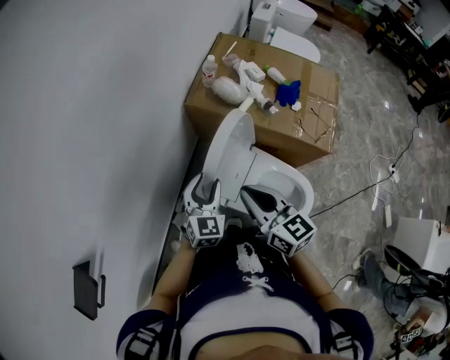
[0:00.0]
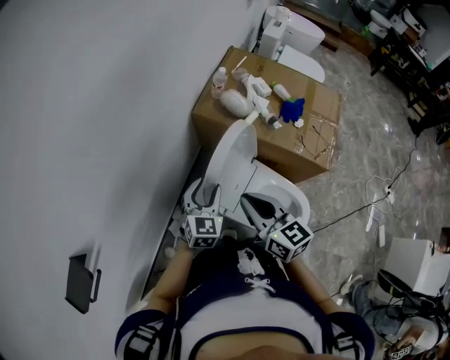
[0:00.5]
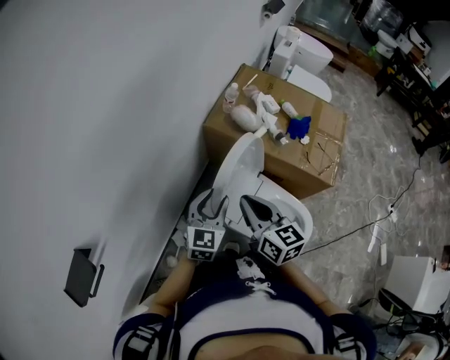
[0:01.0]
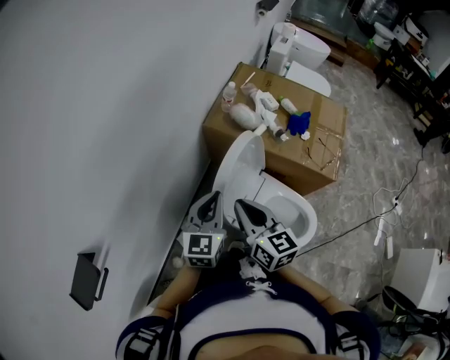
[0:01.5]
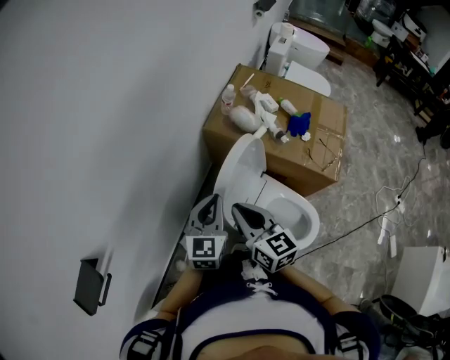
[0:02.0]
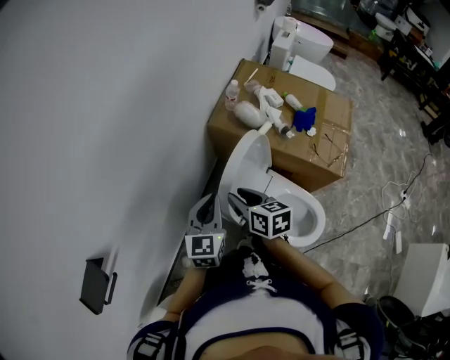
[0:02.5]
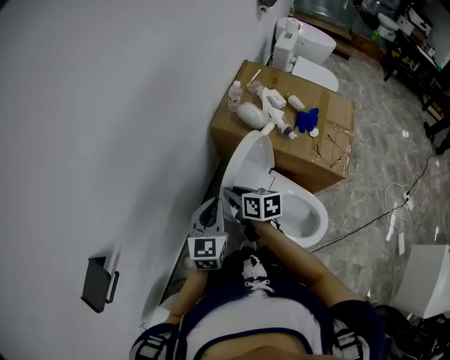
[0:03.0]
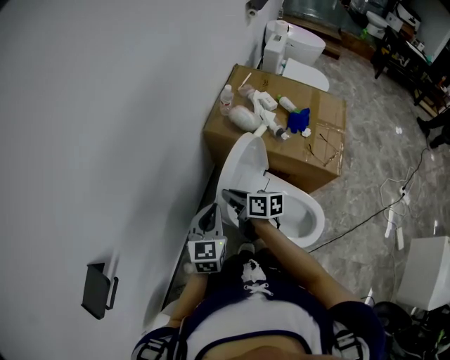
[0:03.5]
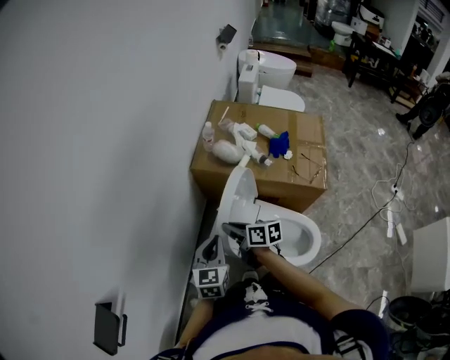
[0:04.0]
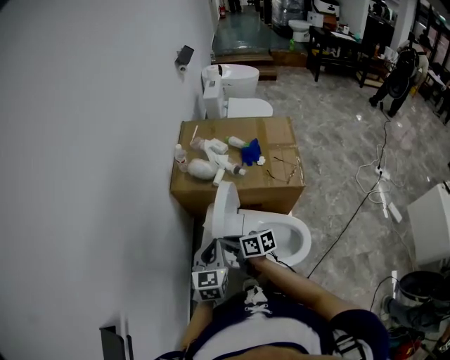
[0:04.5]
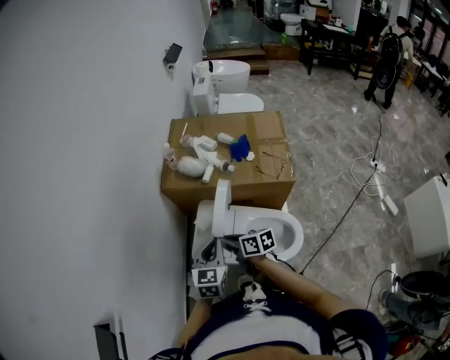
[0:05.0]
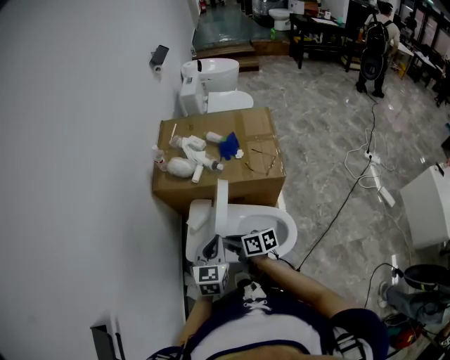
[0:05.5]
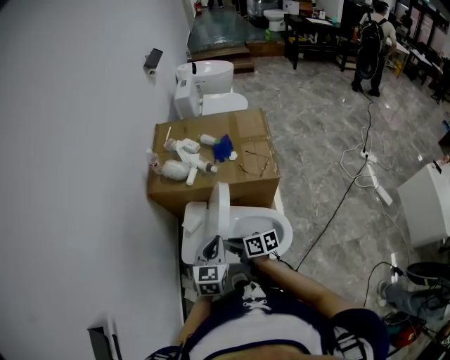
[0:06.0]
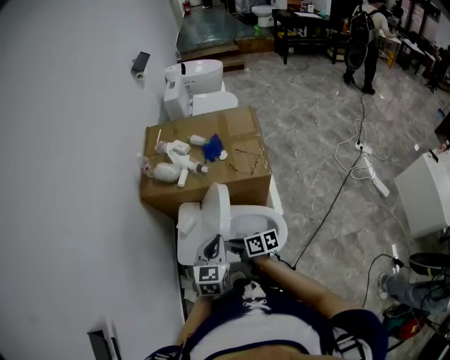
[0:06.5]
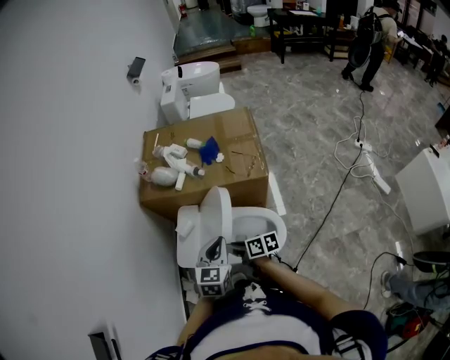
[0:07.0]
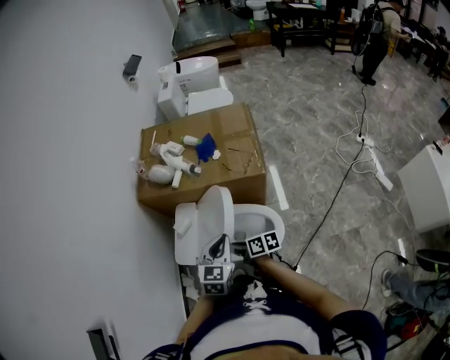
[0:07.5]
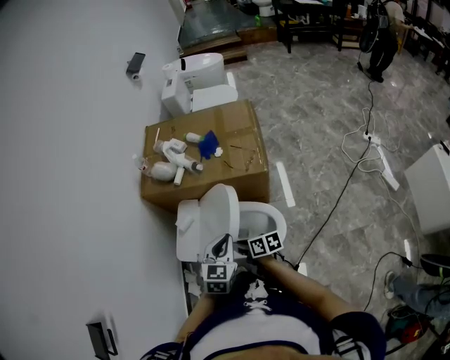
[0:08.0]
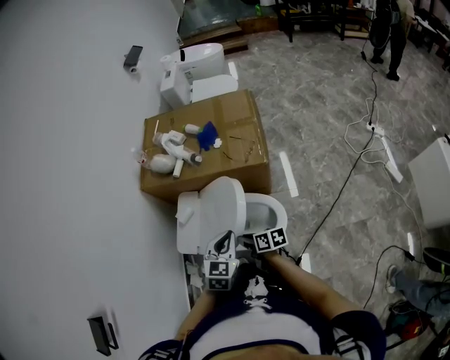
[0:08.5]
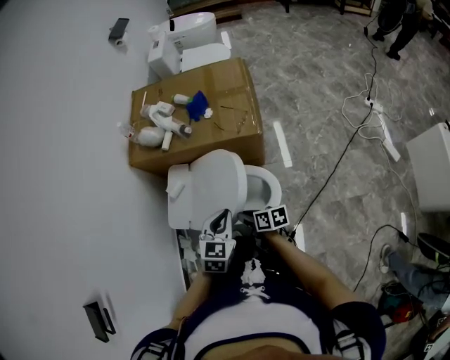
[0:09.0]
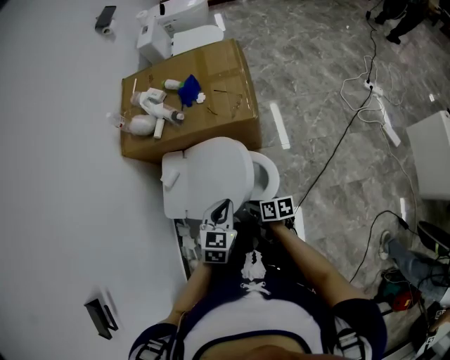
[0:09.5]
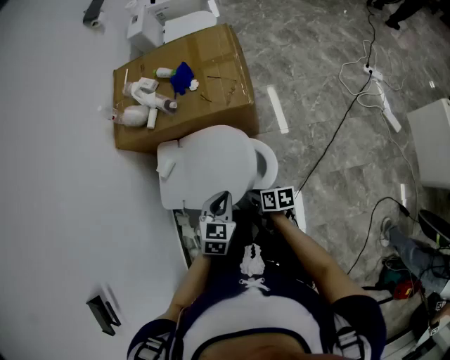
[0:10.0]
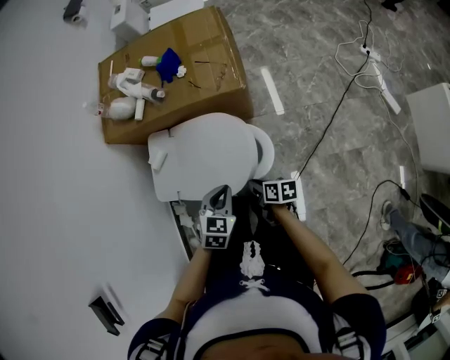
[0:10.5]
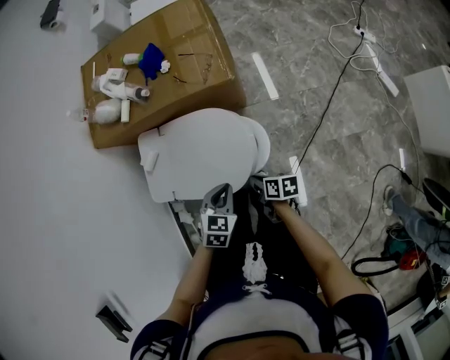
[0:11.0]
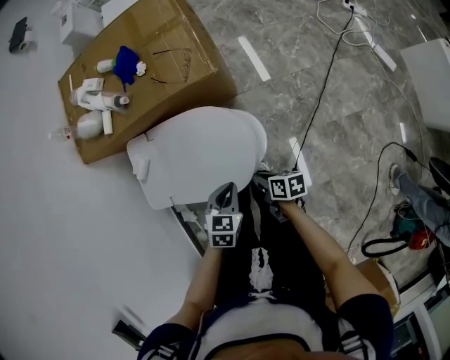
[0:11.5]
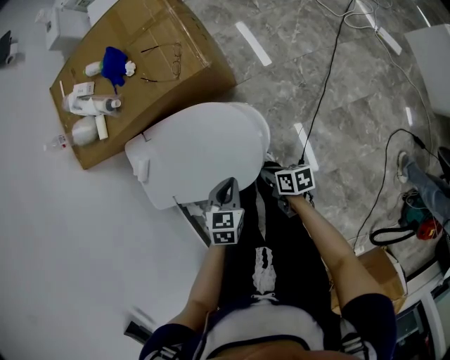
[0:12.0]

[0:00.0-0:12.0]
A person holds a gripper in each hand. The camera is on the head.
0:00.0 to 0:02.0: The right gripper shifts roughly 5 cm to the left. Meanwhile the left gripper moves upward, roughly 10 cm, and closes up.
0:02.0 to 0:04.0: The right gripper travels downward and forward by approximately 10 cm, and turns by approximately 30 degrees. The left gripper moves roughly 5 cm.
0:04.0 to 0:06.0: The left gripper goes approximately 20 cm to the right; the right gripper shifts approximately 20 cm to the right and backward.
0:06.0 to 0:08.0: The right gripper heads to the right, backward and downward, covering some 15 cm, while the left gripper travels to the right and backward by about 15 cm.
0:08.0 to 0:10.0: The left gripper goes roughly 10 cm downward, while the right gripper shifts about 15 cm downward, to the right and backward.
0:10.0 to 0:12.0: The right gripper shifts approximately 15 cm downward and to the right; the left gripper shifts approximately 15 cm downward.

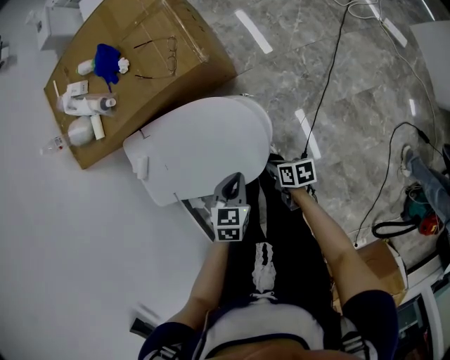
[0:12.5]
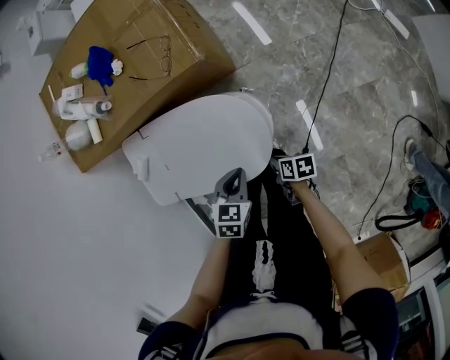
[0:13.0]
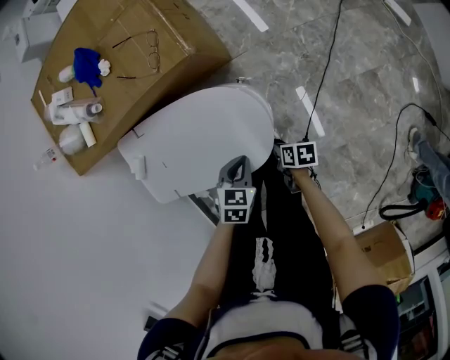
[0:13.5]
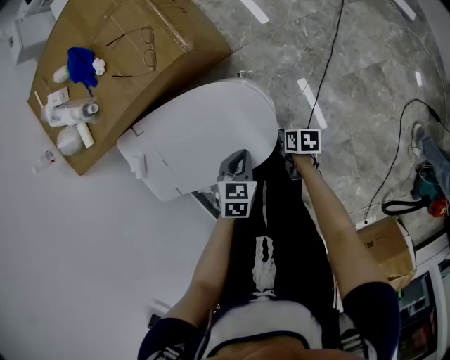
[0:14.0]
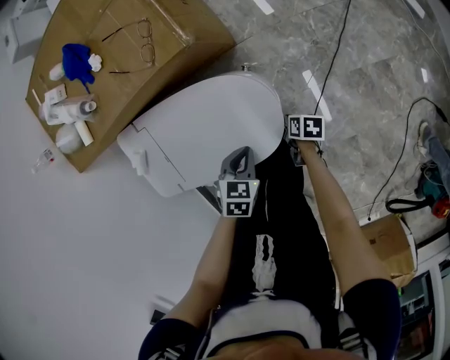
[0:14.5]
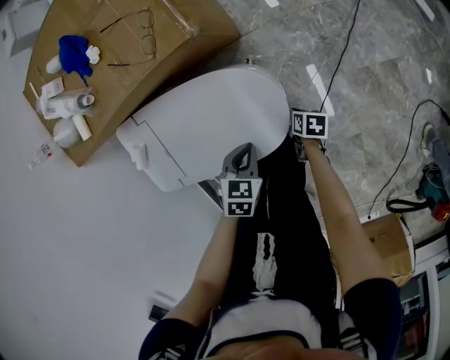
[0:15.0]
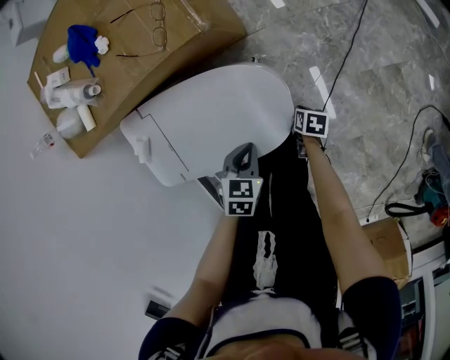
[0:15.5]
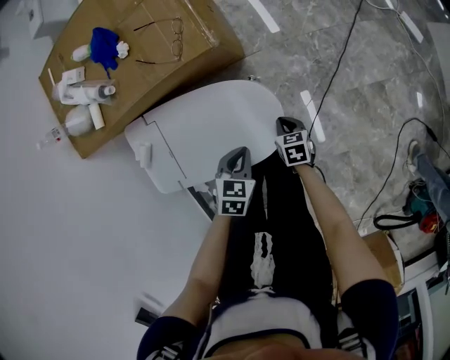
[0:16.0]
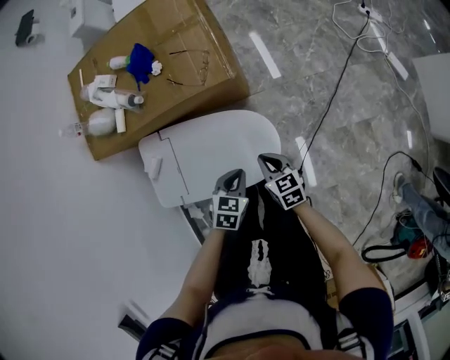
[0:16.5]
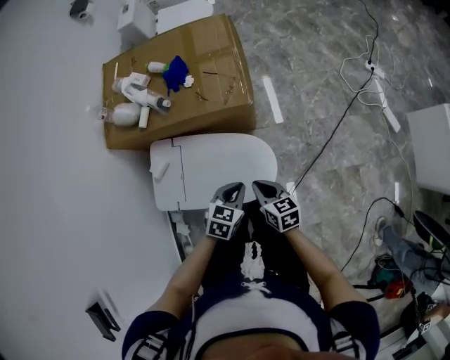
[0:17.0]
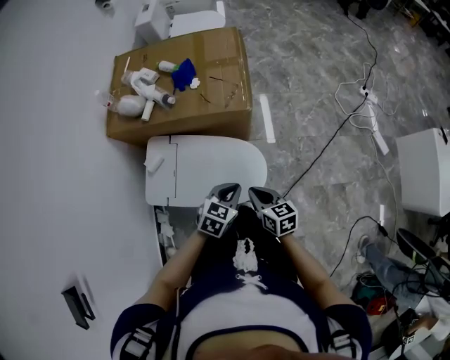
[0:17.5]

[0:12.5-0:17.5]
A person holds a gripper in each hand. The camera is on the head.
0:12.5 to 0:15.0: The right gripper goes some 20 cm downward and to the right, and swivels some 20 degrees. Meanwhile the left gripper is displaced downward by about 10 cm.
0:15.0 to 0:17.5: The left gripper travels upward by approximately 25 cm, and rotates about 20 degrees. Meanwhile the right gripper goes about 40 cm upward, and tips its fingers upward by some 30 degrees.

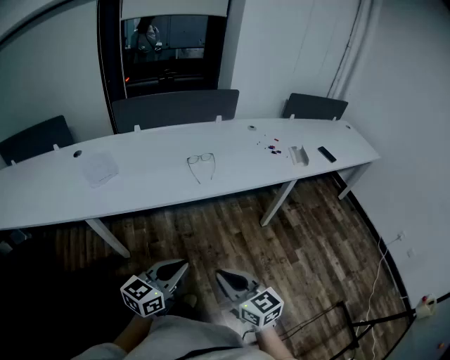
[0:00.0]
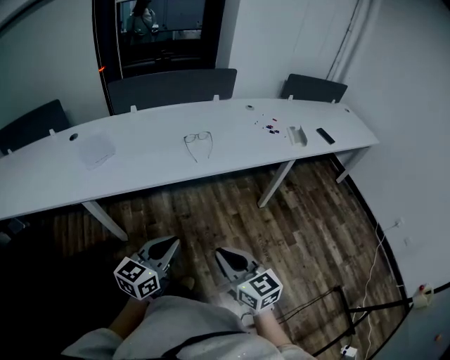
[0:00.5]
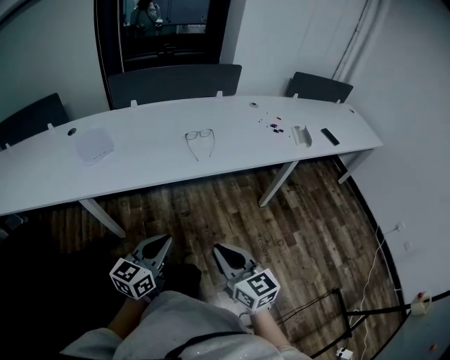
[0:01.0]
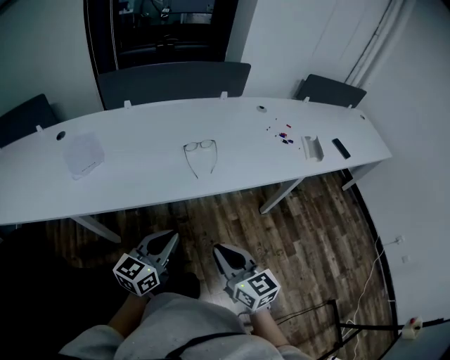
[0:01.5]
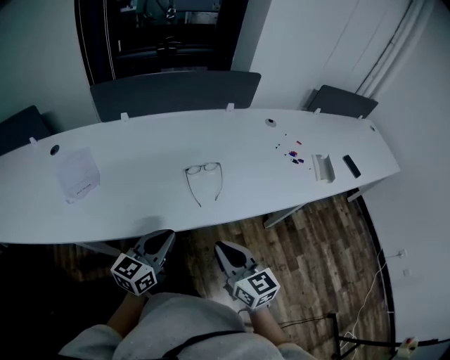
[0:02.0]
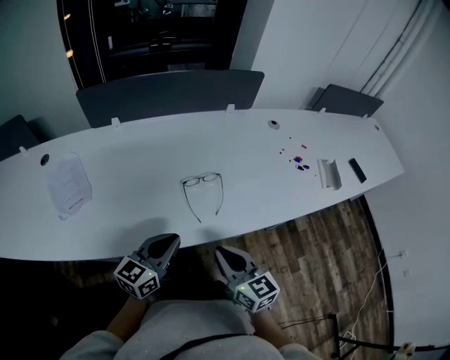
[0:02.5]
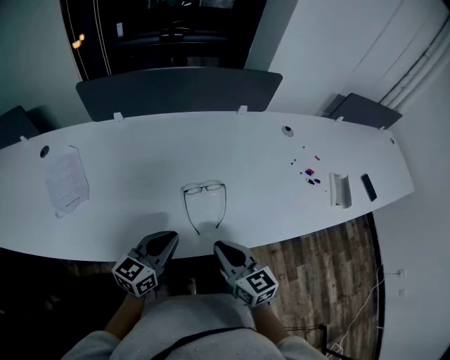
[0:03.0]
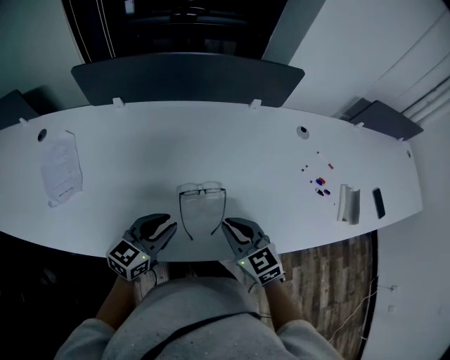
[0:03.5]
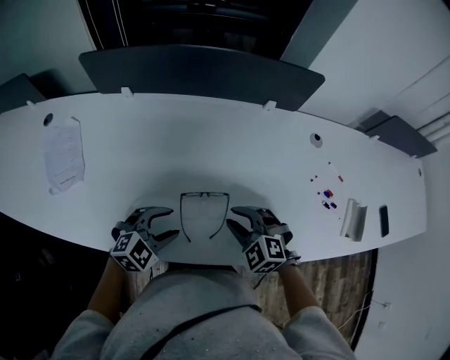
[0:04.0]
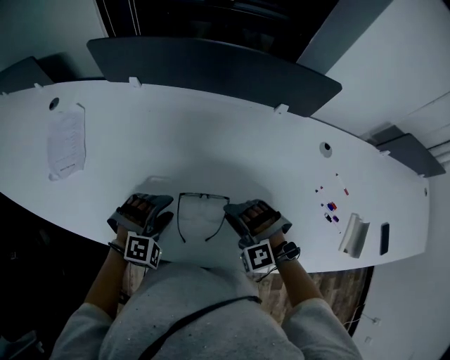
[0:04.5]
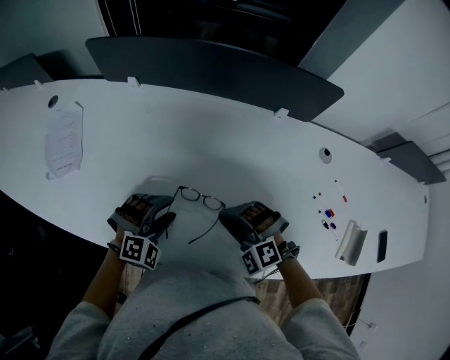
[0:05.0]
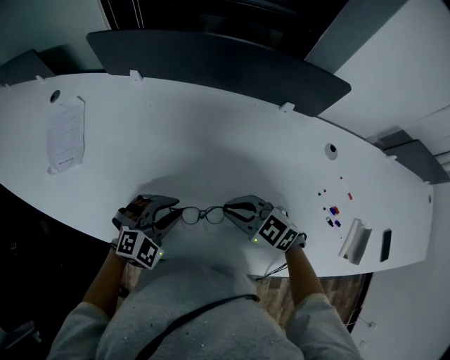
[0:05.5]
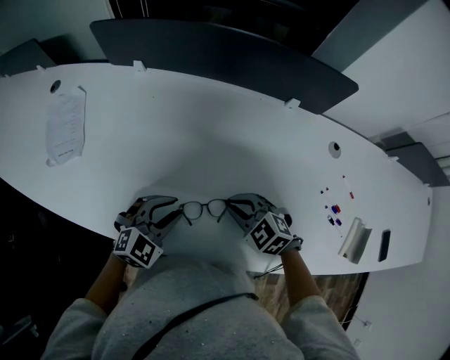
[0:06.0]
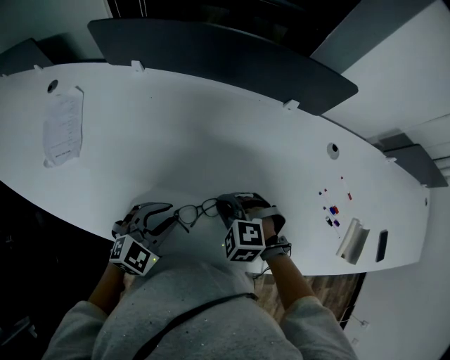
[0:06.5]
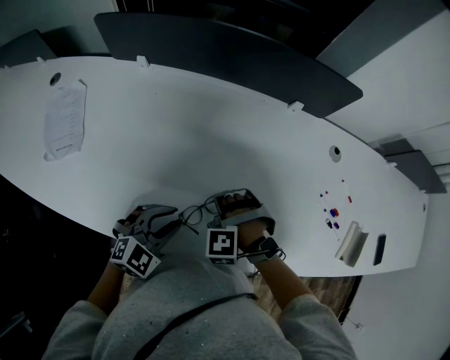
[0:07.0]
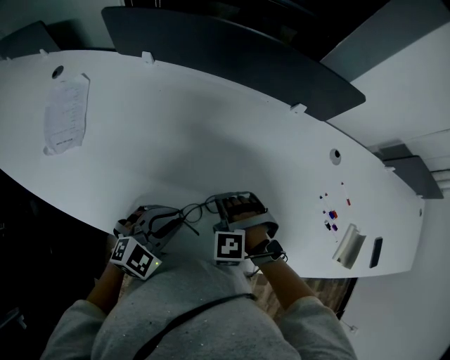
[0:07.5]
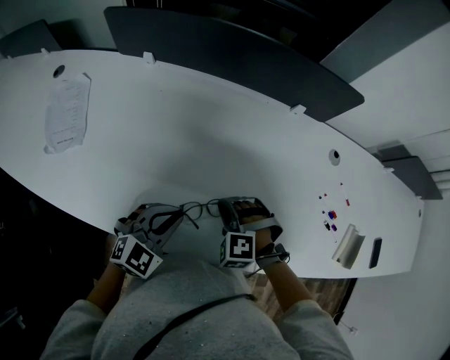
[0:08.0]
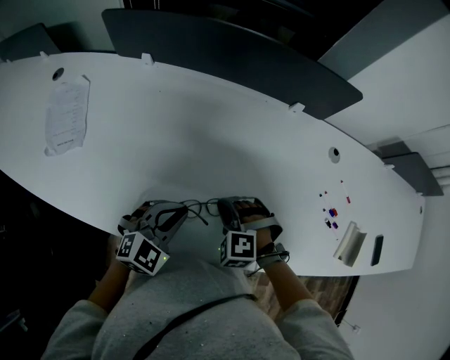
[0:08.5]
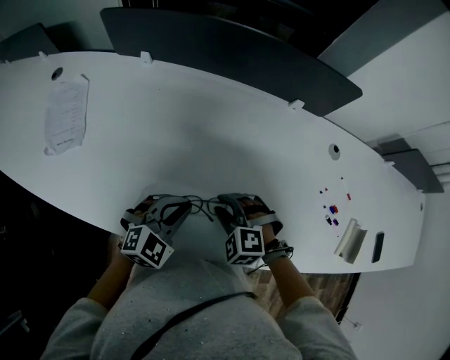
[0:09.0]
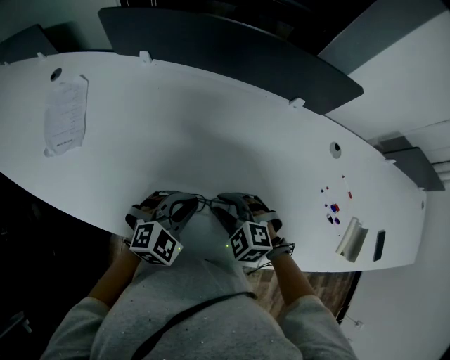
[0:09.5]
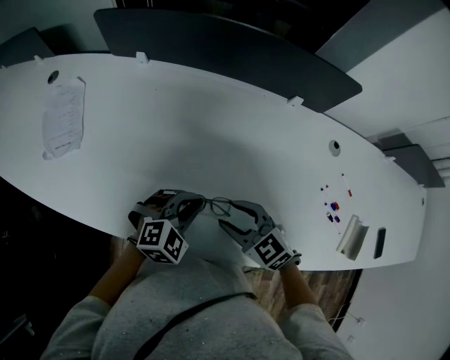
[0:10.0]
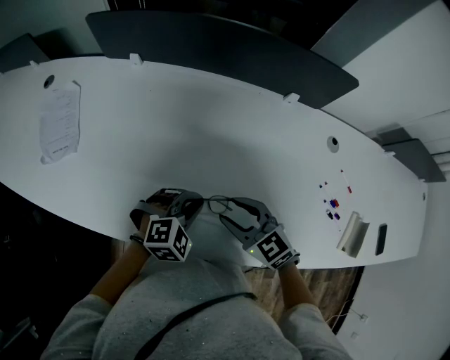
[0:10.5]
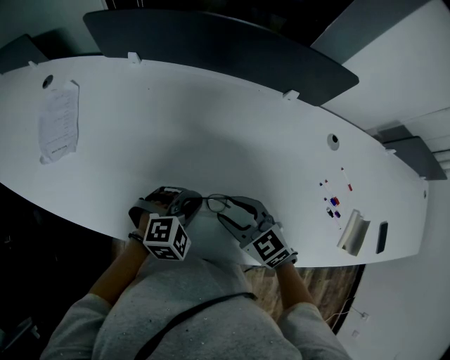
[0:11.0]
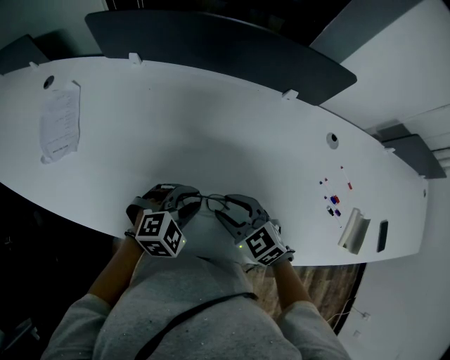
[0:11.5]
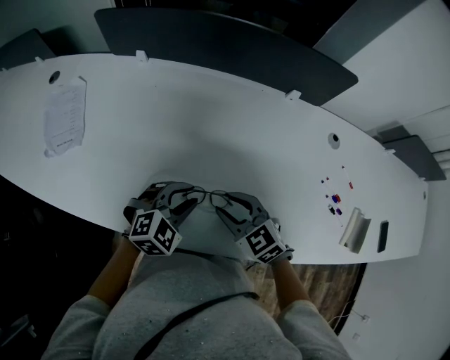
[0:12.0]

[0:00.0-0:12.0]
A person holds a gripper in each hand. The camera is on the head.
0:00.0 to 0:02.0: Both grippers travel together forward, about 35 cm.
0:02.0 to 0:04.0: Both grippers travel together forward and downward, some 30 cm. The left gripper angles its fingers downward, by about 30 degrees, and opens its fingers; the right gripper twists approximately 60 degrees counterclockwise, seen from behind, and opens.
0:04.0 to 0:06.0: The right gripper shifts by some 5 cm, and closes up, while the left gripper closes.
0:06.0 to 0:08.0: The left gripper closes up; the right gripper turns by roughly 40 degrees.
0:08.0 to 0:10.0: The right gripper ends up roughly 5 cm from where it was, rotates roughly 50 degrees, and opens up. Meanwhile the left gripper ends up roughly 5 cm from where it was.
0:10.0 to 0:12.0: The left gripper opens its fingers.
